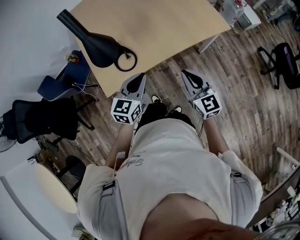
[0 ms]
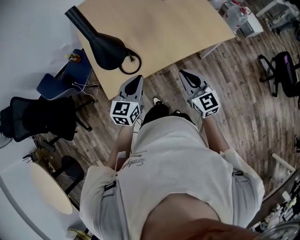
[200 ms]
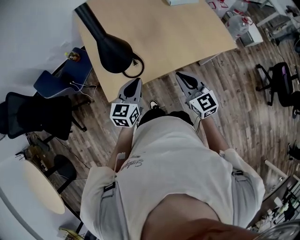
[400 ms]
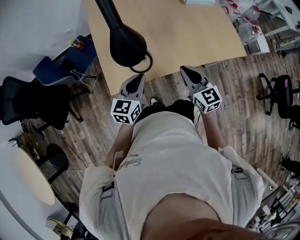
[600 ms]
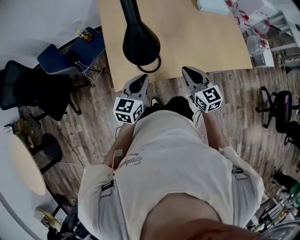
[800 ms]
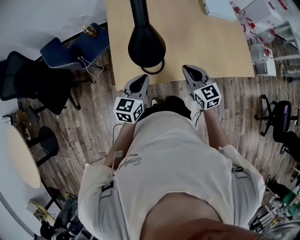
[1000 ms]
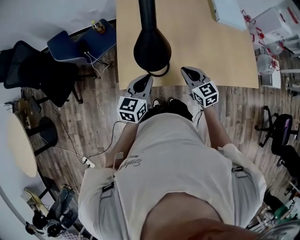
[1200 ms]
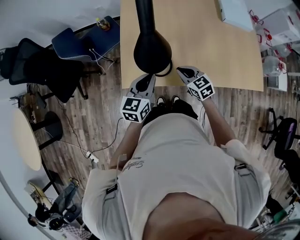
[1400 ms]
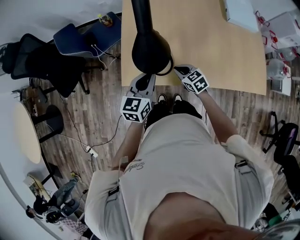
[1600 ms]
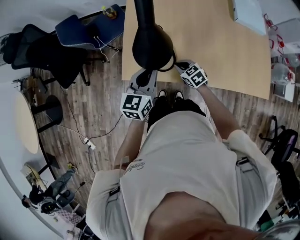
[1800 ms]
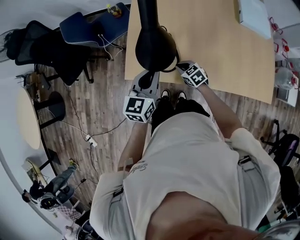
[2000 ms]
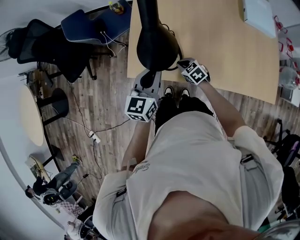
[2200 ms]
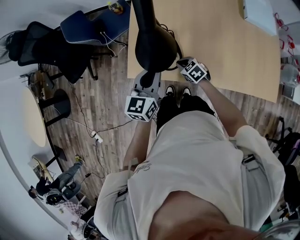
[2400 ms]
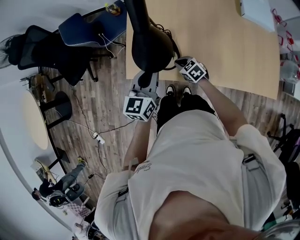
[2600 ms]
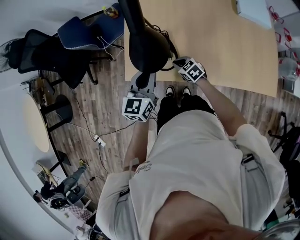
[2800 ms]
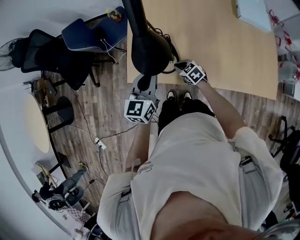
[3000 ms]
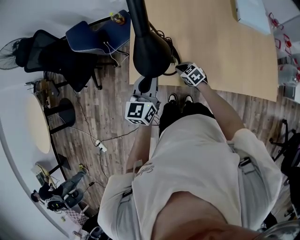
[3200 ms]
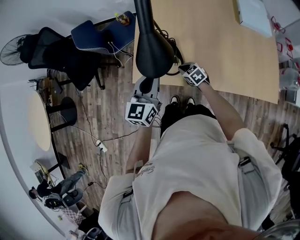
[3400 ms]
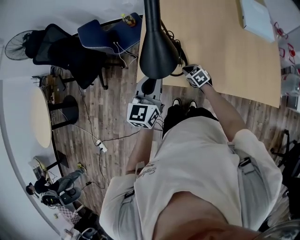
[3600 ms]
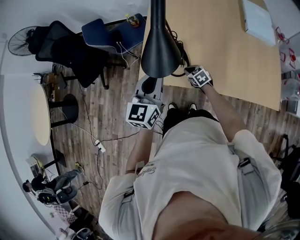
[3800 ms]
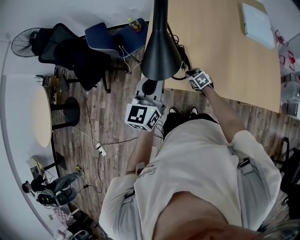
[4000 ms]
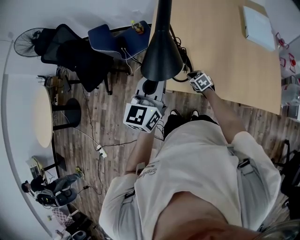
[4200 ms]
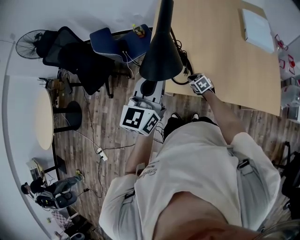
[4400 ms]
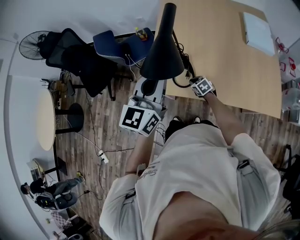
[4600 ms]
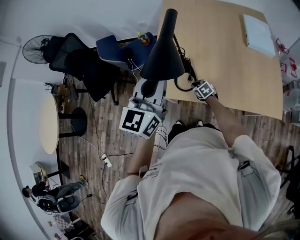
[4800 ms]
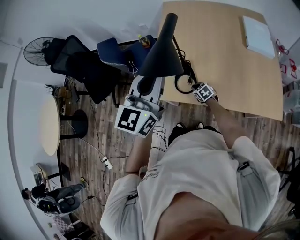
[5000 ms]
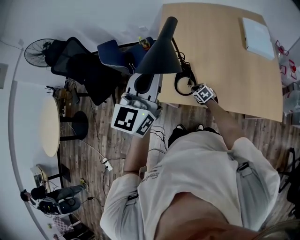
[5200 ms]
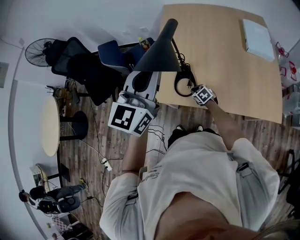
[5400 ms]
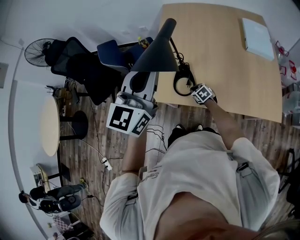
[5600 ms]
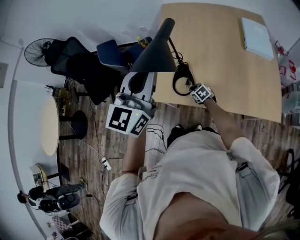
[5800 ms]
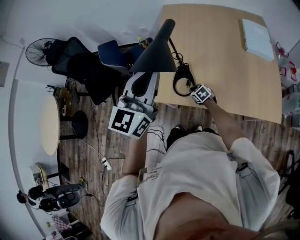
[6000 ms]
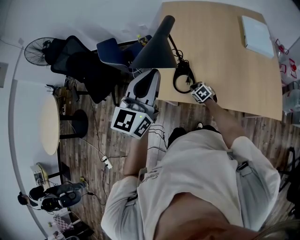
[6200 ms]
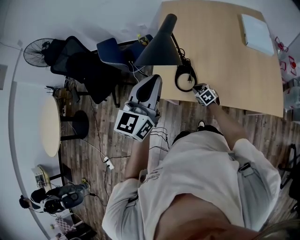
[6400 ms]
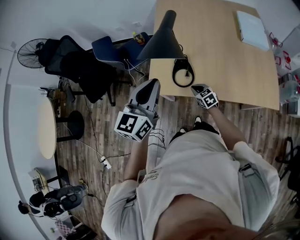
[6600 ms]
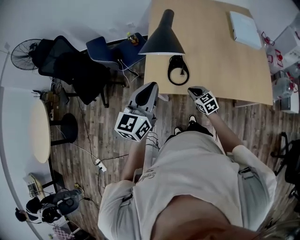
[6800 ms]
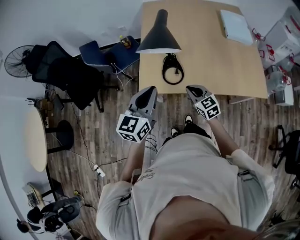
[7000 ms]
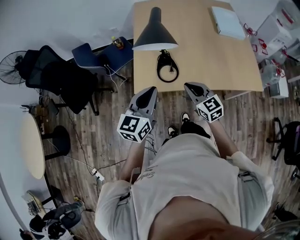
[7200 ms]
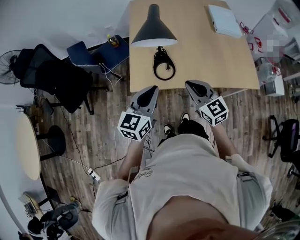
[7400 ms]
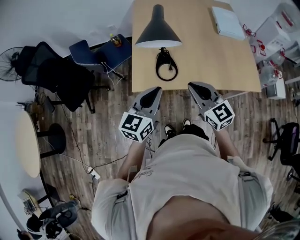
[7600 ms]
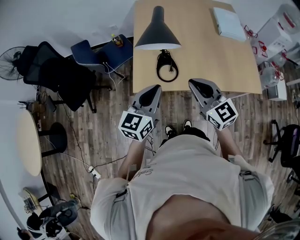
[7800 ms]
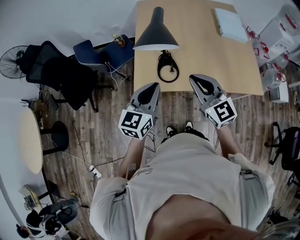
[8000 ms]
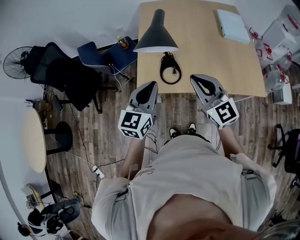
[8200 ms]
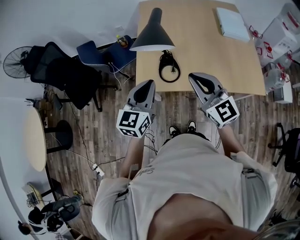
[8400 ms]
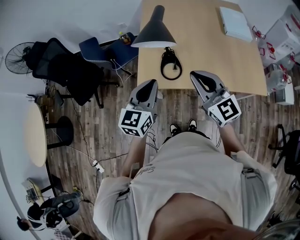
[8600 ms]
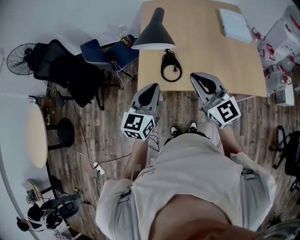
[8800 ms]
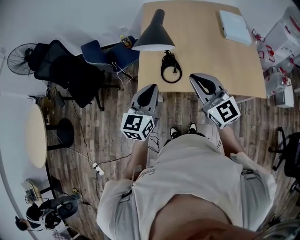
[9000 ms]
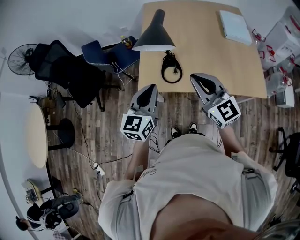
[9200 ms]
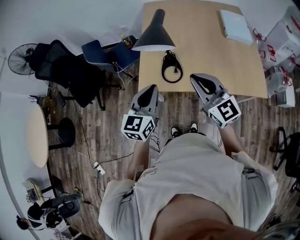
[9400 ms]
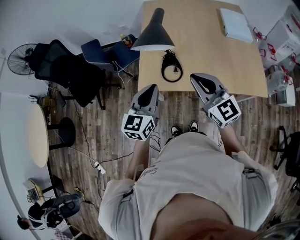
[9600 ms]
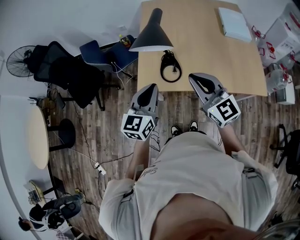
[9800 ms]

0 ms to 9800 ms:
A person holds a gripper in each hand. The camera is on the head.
0 ms to 1400 ms: The left gripper shifts by approximately 15 cm, and swivels roughly 30 degrees. The right gripper shifts by about 30 cm, and rotates approximately 50 degrees.
1400 ms to 2800 ms: The right gripper shifts roughly 15 cm downward, and turns by some 20 degrees.
2800 ms to 4200 ms: The left gripper shifts some 15 cm upward.
4200 ms to 5600 ms: The left gripper is displaced upward by roughly 15 cm.
5600 ms to 7000 ms: The left gripper heads downward, to the left and backward, covering about 20 cm; the right gripper moves upward and backward, approximately 20 cm, and turns by some 30 degrees.
7000 ms to 8400 ms: The right gripper shifts some 20 cm upward, and swivels about 30 degrees.
8400 ms to 9800 ms: The grippers stay close to where they were, moving slightly.

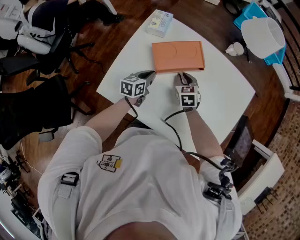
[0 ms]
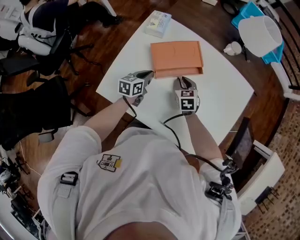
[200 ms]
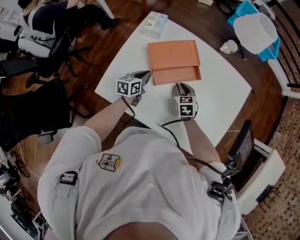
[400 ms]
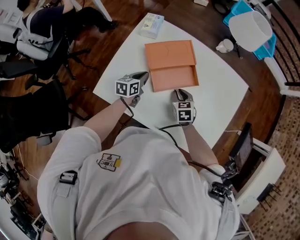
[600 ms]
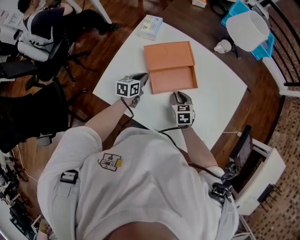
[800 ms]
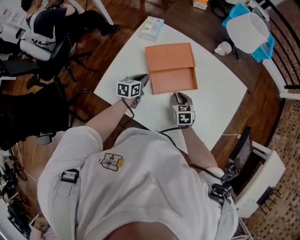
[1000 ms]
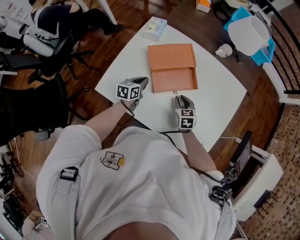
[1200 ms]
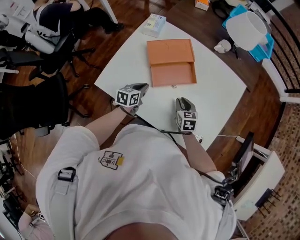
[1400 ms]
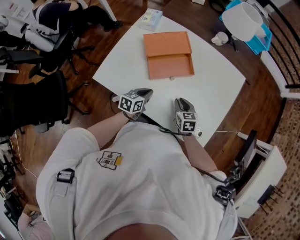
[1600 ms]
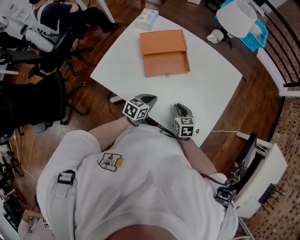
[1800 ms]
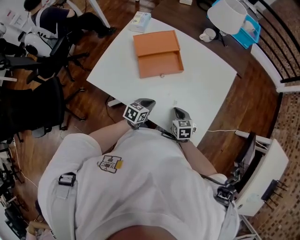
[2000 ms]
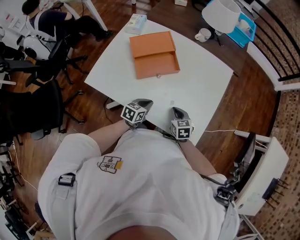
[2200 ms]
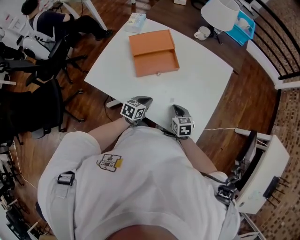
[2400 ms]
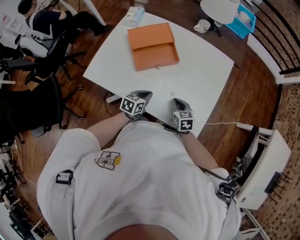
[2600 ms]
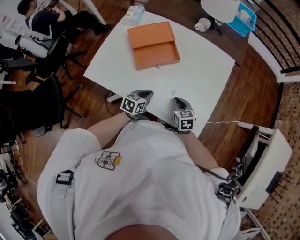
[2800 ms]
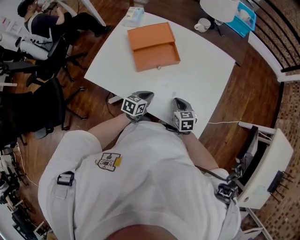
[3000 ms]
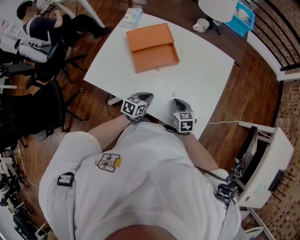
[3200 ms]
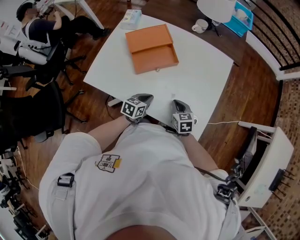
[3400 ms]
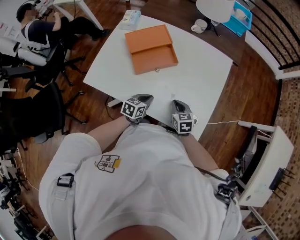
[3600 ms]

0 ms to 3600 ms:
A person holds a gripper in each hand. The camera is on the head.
0 ms to 1800 ms: Both grippers move backward and to the right, some 25 cm.
1800 ms to 3600 ms: The grippers move only a little.

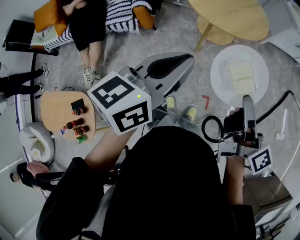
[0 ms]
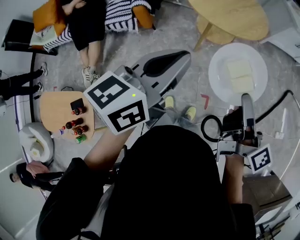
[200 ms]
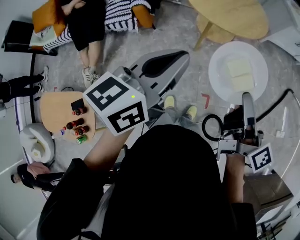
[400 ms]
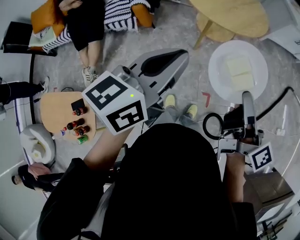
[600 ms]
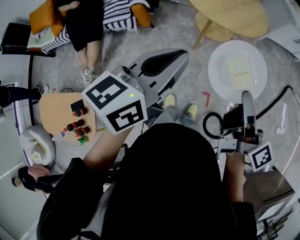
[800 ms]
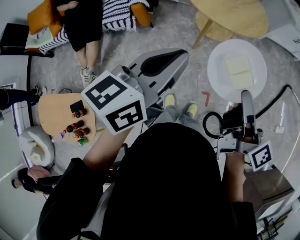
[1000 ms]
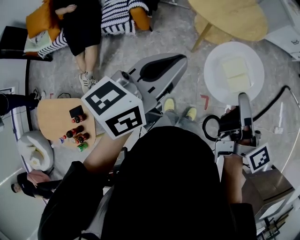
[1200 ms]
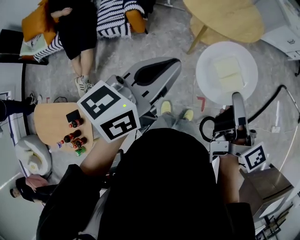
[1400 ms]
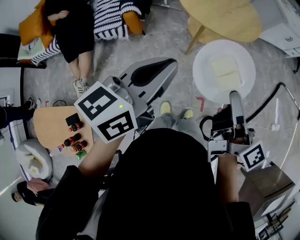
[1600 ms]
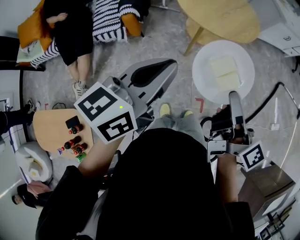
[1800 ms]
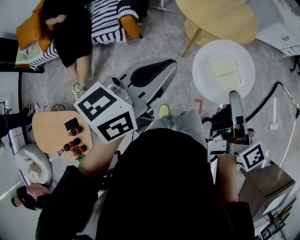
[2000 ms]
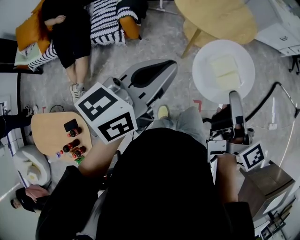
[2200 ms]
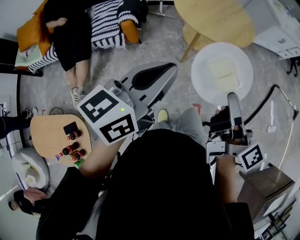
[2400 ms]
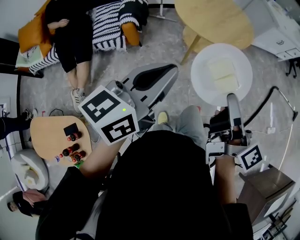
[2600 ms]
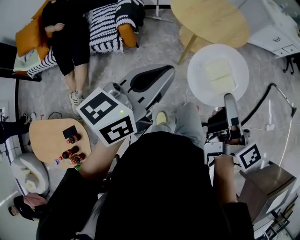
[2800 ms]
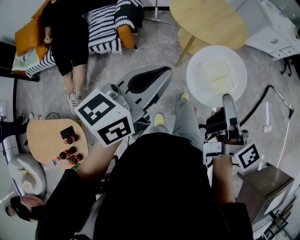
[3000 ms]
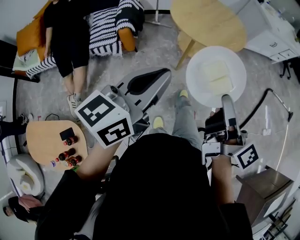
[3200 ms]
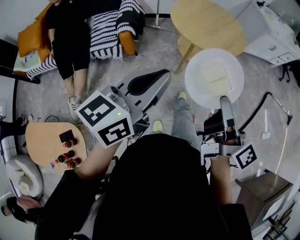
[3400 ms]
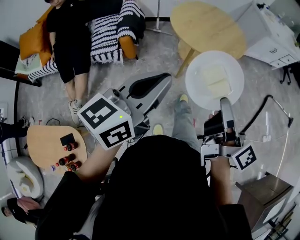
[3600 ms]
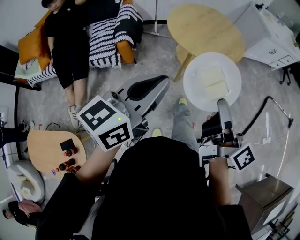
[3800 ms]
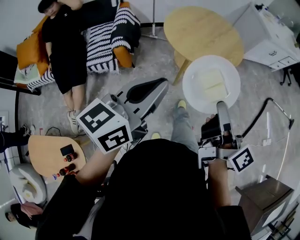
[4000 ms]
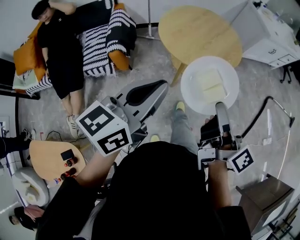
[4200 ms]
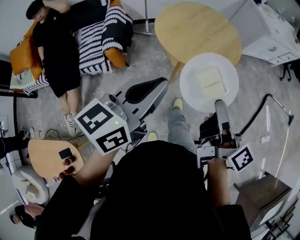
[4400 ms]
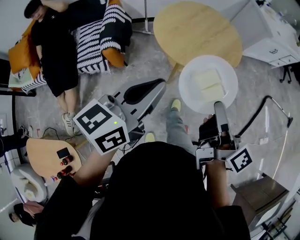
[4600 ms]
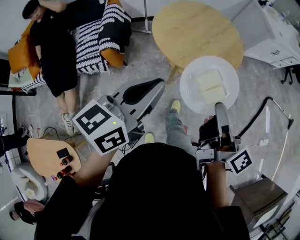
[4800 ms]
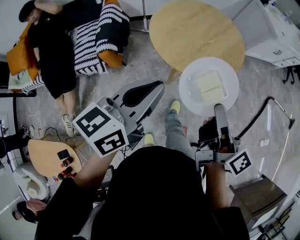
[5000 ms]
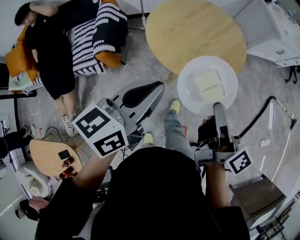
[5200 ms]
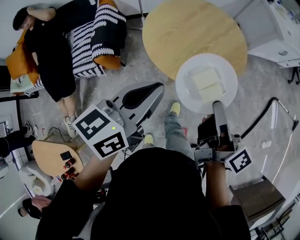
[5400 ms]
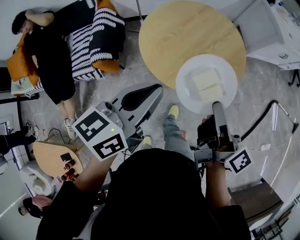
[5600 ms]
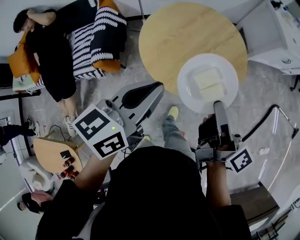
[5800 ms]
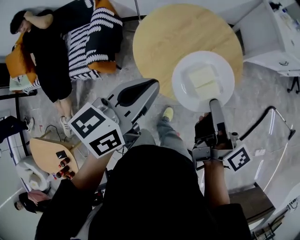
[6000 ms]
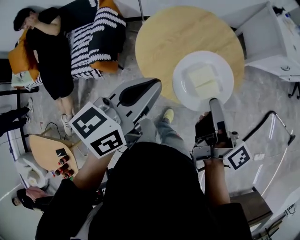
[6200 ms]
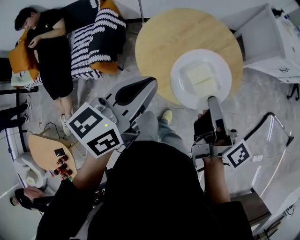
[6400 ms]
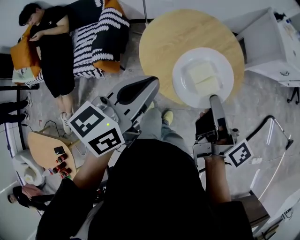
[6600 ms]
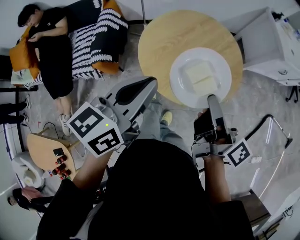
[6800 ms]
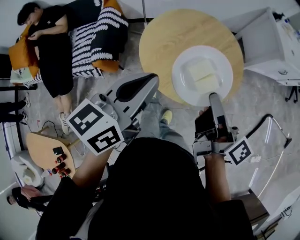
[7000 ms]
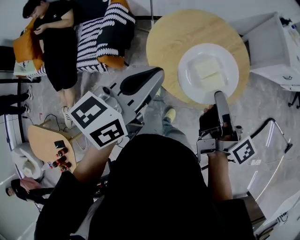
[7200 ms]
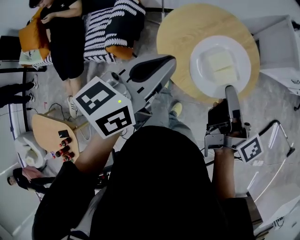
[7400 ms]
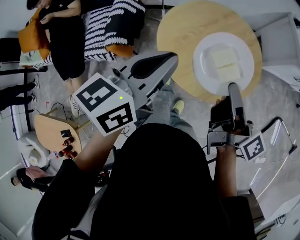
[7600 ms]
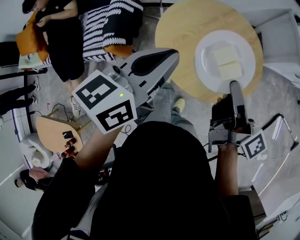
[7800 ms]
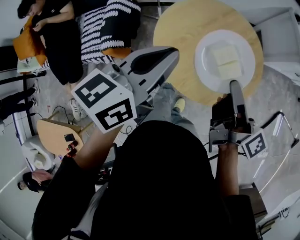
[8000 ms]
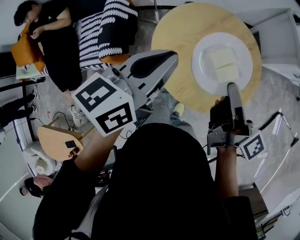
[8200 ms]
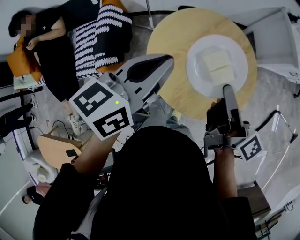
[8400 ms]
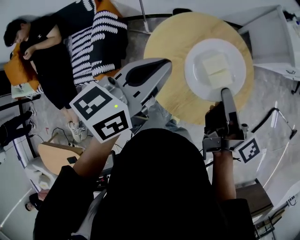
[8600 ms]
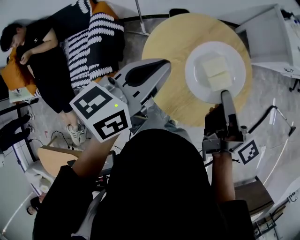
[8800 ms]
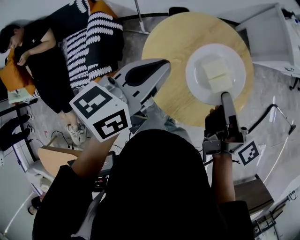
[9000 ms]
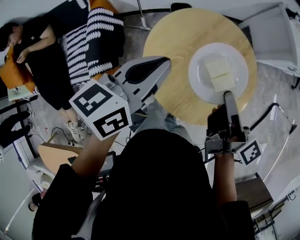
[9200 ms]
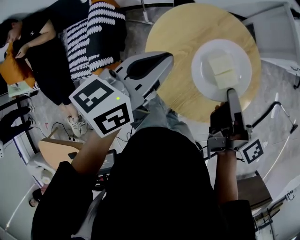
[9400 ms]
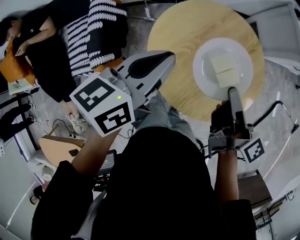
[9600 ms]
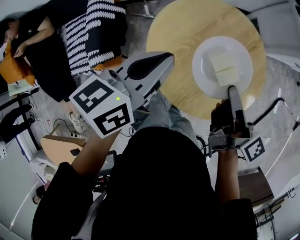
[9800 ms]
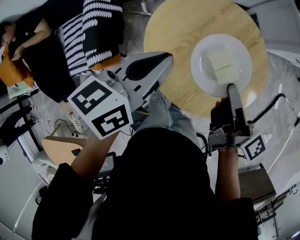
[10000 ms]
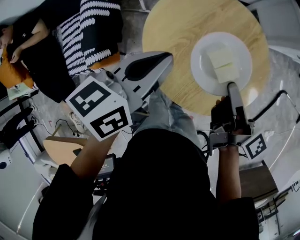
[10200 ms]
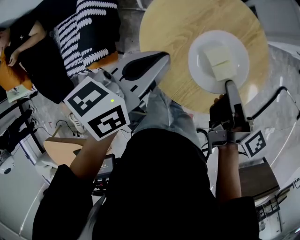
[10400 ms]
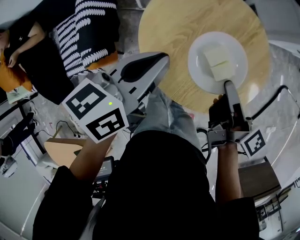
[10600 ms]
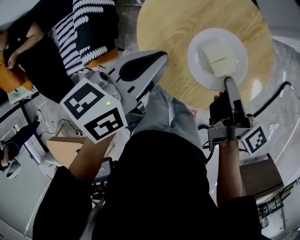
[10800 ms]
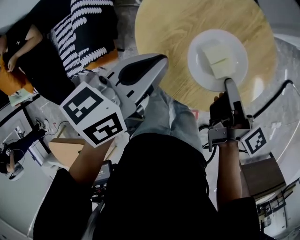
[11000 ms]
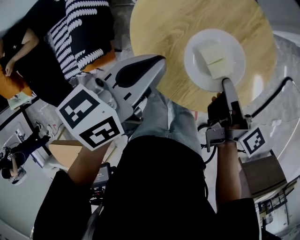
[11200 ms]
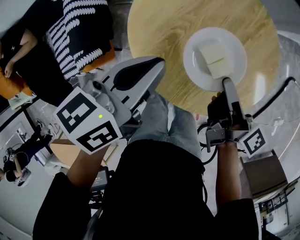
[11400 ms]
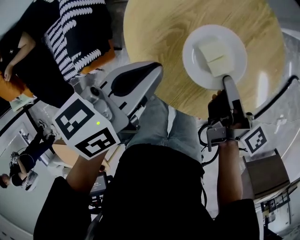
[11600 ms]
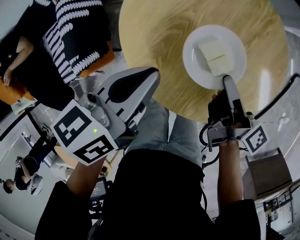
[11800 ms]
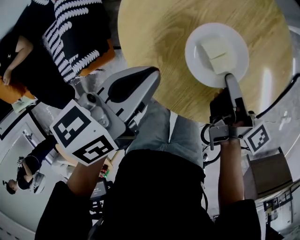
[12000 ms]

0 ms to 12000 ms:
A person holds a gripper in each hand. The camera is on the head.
0 ms to 1600 ms: The two grippers go approximately 10 cm to the left.
1600 ms to 3000 ms: There are only small adjustments of the grippers.
3000 ms to 4400 ms: The grippers both shift forward by some 15 cm.
4400 ms to 6000 ms: The grippers both shift forward by roughly 25 cm.
6000 ms to 7600 ms: The left gripper shifts some 10 cm forward and to the left; the right gripper heads forward, covering about 5 cm.
7600 ms to 9000 ms: The left gripper heads forward, covering approximately 10 cm. The right gripper moves forward, roughly 5 cm.
9000 ms to 10400 ms: The grippers both shift downward by some 10 cm.
10400 ms to 12000 ms: Both grippers travel together downward and to the right, roughly 15 cm.
